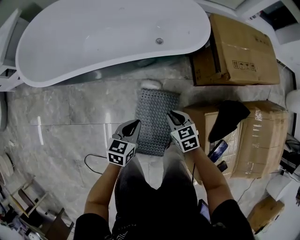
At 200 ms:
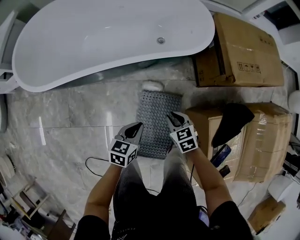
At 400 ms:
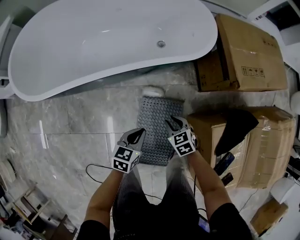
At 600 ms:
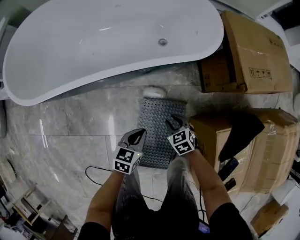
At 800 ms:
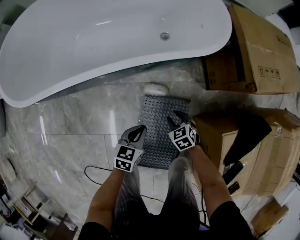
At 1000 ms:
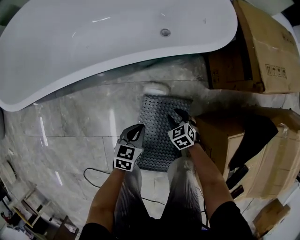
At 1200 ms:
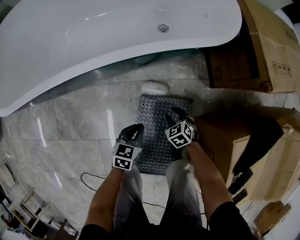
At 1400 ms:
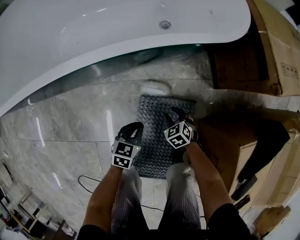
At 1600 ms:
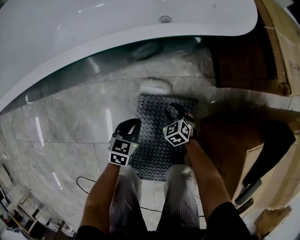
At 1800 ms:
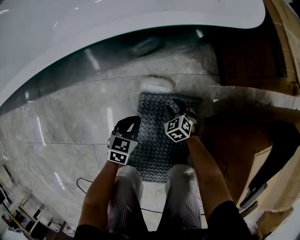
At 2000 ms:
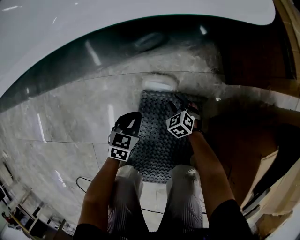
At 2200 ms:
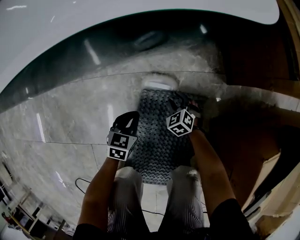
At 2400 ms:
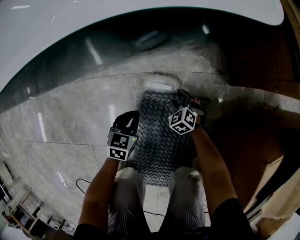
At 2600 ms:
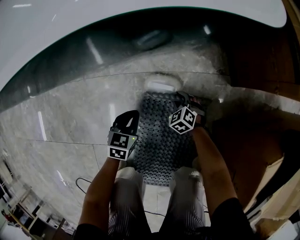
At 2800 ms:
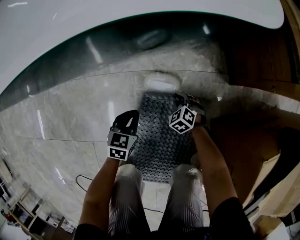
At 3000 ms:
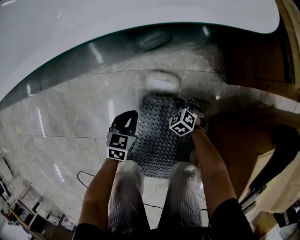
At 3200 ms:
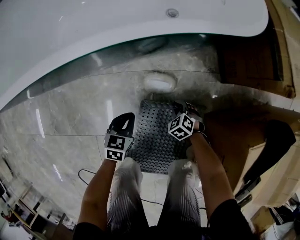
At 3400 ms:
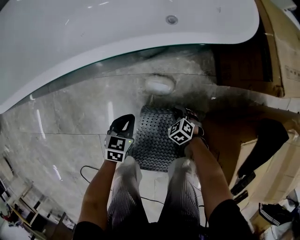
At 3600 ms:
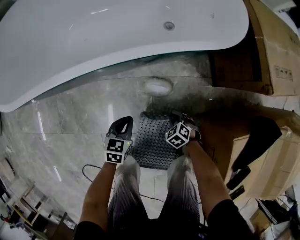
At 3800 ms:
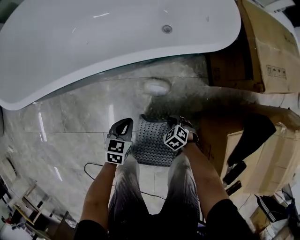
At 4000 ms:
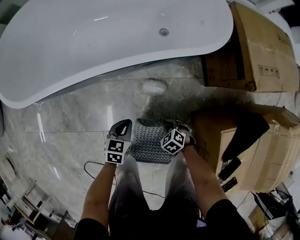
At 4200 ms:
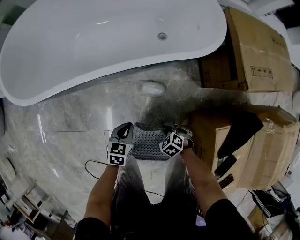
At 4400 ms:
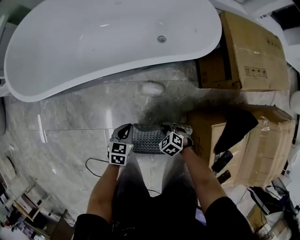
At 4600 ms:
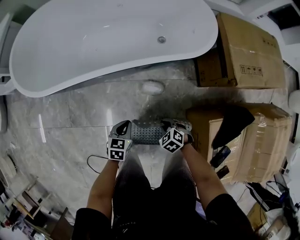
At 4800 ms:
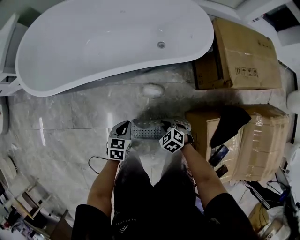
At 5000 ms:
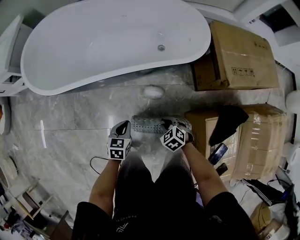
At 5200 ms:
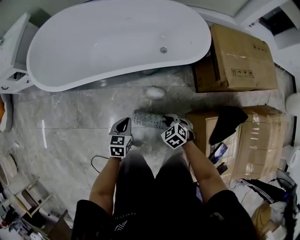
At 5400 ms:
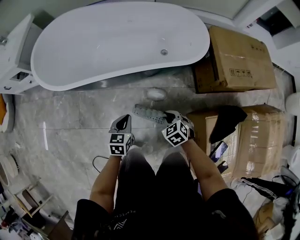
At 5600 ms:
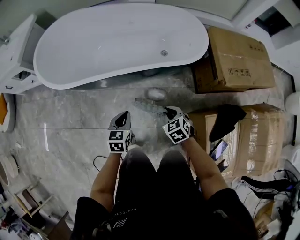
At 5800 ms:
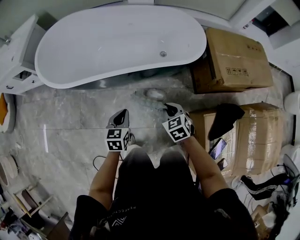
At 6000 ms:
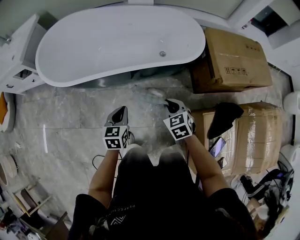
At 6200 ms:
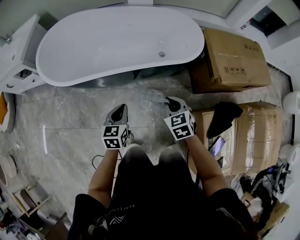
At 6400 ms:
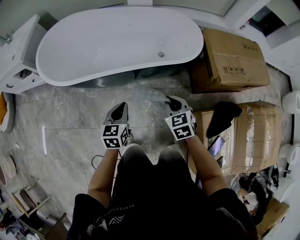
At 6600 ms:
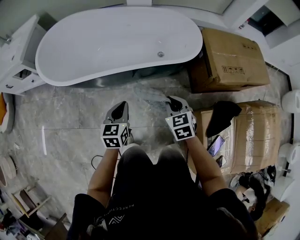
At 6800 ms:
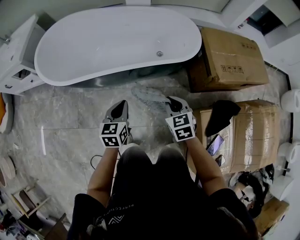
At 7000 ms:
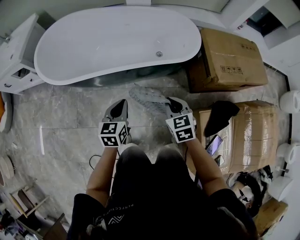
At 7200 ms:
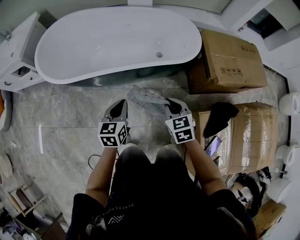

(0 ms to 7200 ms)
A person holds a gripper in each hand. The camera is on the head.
0 ms - 1400 ms: Both grippers move downward, some 35 cm.
1400 ms - 2800 ms: The two grippers go about 10 cm downward. The right gripper closes up.
2800 ms - 4400 ms: The right gripper is displaced upward and backward by approximately 35 cm. The left gripper is displaced upward by approximately 30 cm.
4400 ms - 5800 ms: The two grippers go some 25 cm upward. The right gripper swivels about 30 degrees.
5800 ms - 7200 ms: Both grippers move upward, some 10 cm.

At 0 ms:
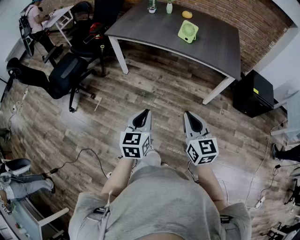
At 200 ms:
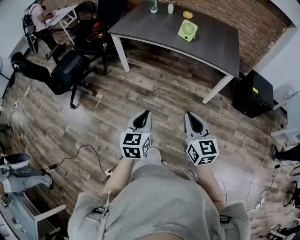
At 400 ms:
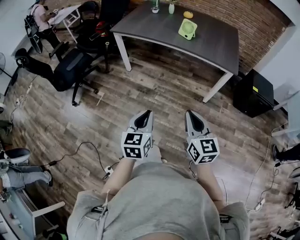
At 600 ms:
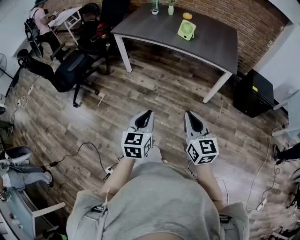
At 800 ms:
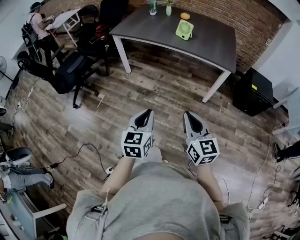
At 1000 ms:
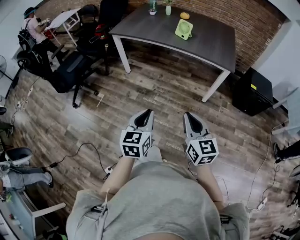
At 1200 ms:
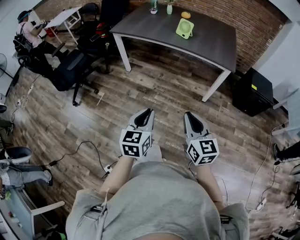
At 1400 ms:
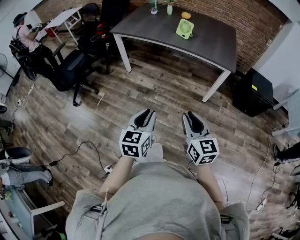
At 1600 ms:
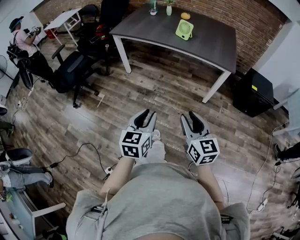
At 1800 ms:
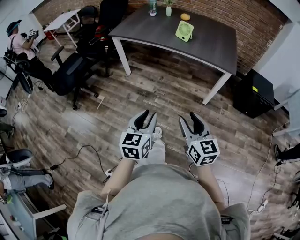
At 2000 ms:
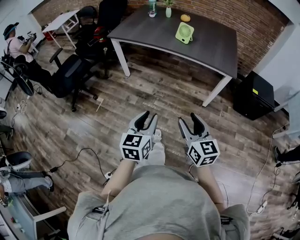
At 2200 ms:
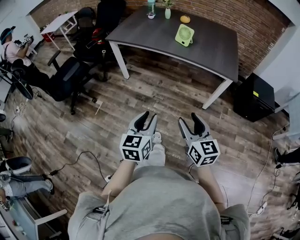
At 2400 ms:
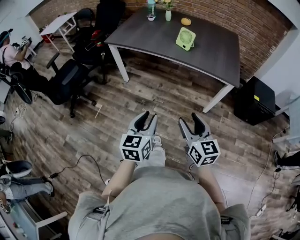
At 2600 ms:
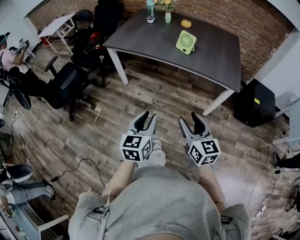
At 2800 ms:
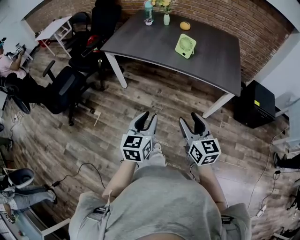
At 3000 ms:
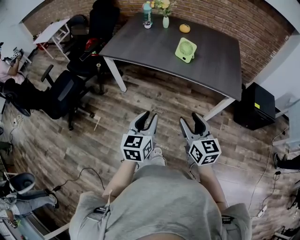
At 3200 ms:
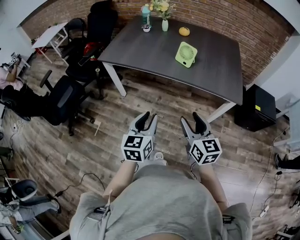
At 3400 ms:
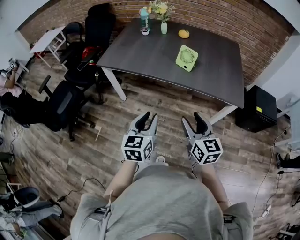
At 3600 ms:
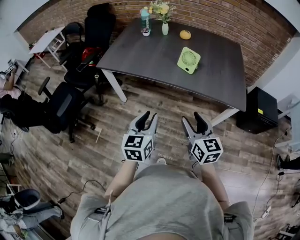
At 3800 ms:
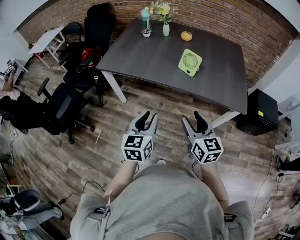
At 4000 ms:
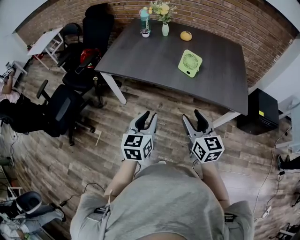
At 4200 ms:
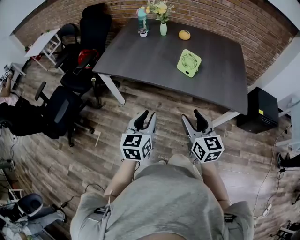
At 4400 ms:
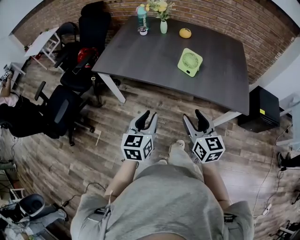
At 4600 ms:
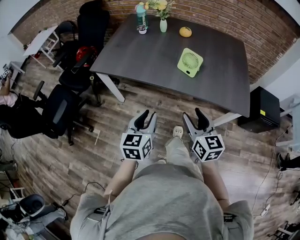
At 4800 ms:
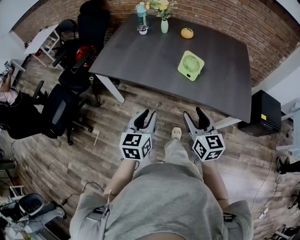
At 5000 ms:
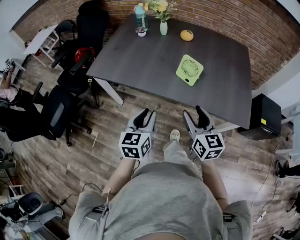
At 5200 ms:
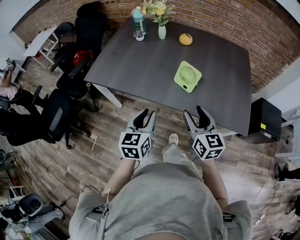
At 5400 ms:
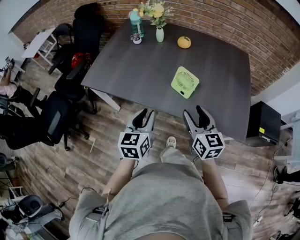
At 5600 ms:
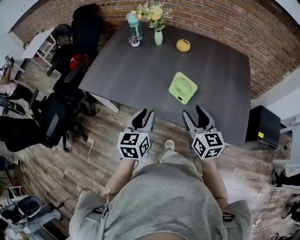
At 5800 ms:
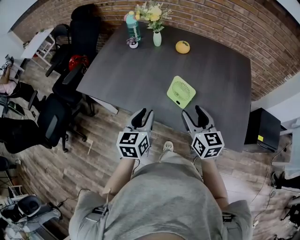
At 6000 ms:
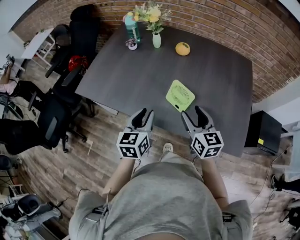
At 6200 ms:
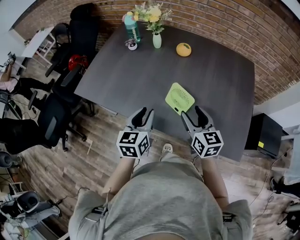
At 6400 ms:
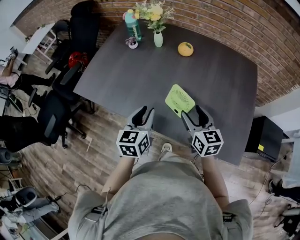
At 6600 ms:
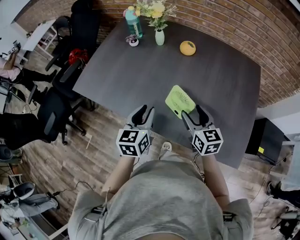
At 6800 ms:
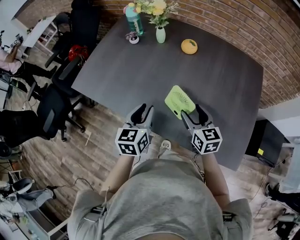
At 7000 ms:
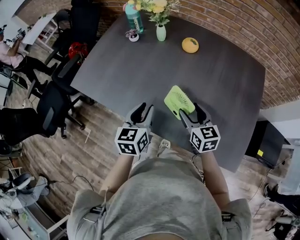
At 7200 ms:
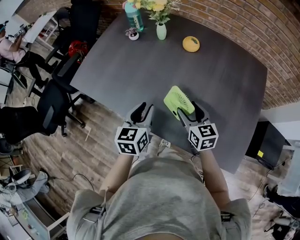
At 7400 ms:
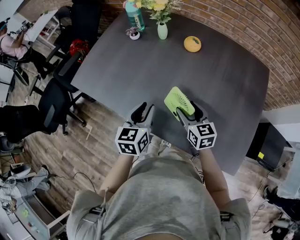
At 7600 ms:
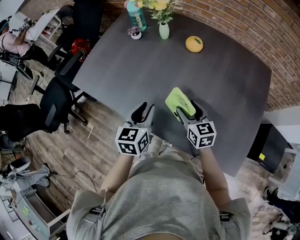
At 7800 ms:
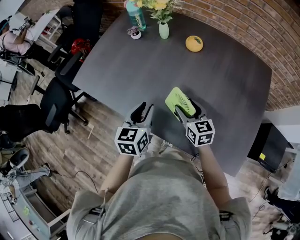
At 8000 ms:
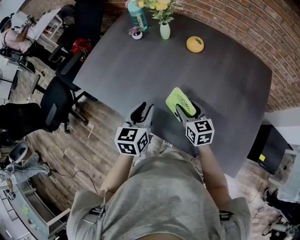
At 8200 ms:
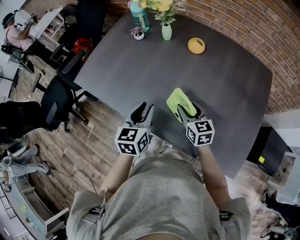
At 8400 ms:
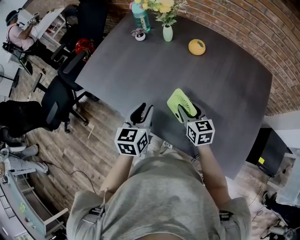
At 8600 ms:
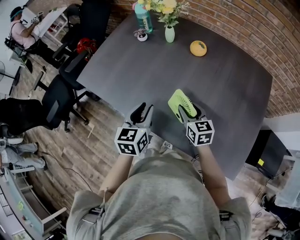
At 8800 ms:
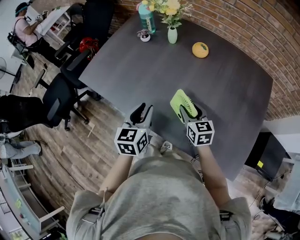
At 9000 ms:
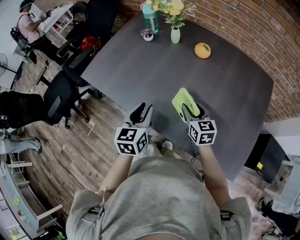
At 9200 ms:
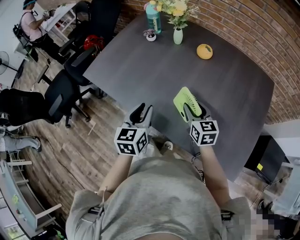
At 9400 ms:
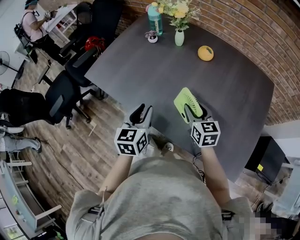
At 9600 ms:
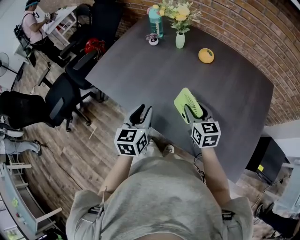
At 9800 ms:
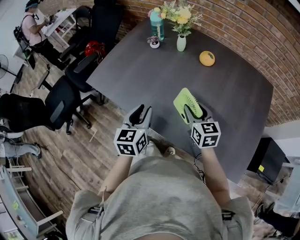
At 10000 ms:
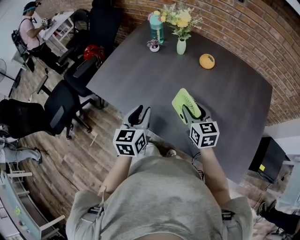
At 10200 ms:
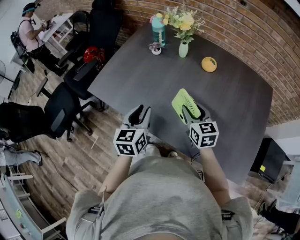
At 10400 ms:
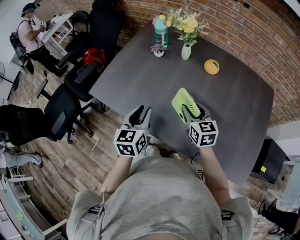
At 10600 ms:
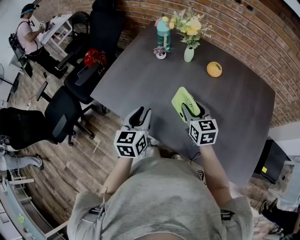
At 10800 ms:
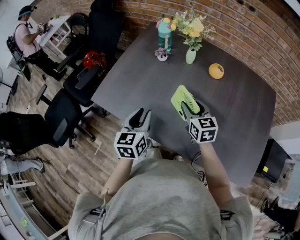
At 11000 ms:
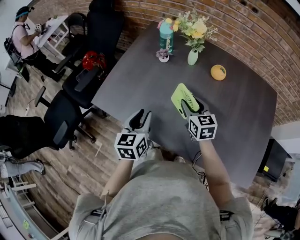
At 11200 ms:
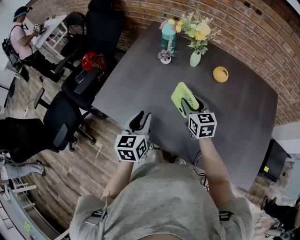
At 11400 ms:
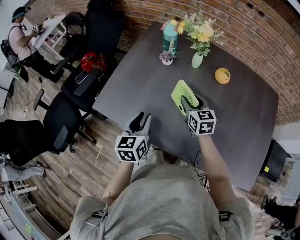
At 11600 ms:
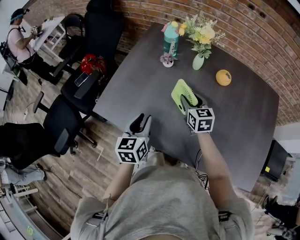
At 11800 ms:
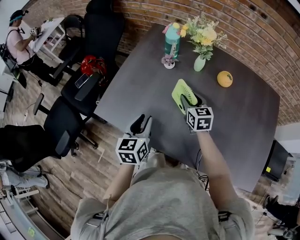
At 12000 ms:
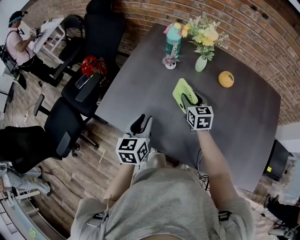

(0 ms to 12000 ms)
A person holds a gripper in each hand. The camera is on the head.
0 ms - 1600 ms: The left gripper moves backward and to the right, approximately 15 cm. The right gripper travels backward by roughly 10 cm, and opens up.
1600 ms - 3000 ms: Both grippers move forward, roughly 25 cm.
3000 ms - 4400 ms: Both grippers move forward, some 20 cm.
4400 ms - 6000 ms: The two grippers go some 25 cm forward.
6000 ms - 7600 ms: The left gripper travels forward by some 10 cm; the right gripper is displaced forward and downward by some 15 cm.
7600 ms - 9000 ms: The grippers stay close to where they were, moving slightly.
9000 ms - 10400 ms: The left gripper travels to the left and forward by approximately 10 cm. The right gripper travels to the left, forward and upward by roughly 15 cm.
10400 ms - 12000 ms: The grippers both shift forward and to the left by some 15 cm.

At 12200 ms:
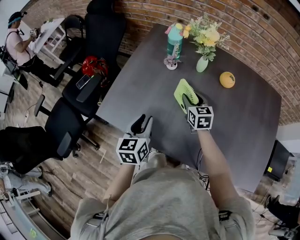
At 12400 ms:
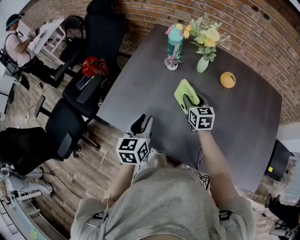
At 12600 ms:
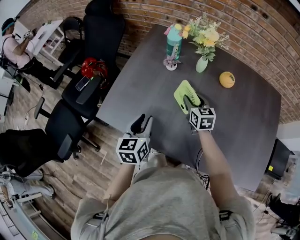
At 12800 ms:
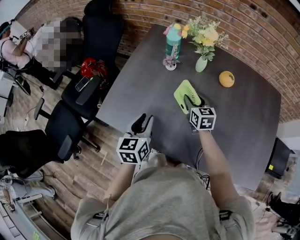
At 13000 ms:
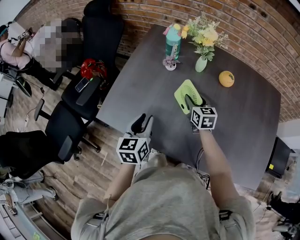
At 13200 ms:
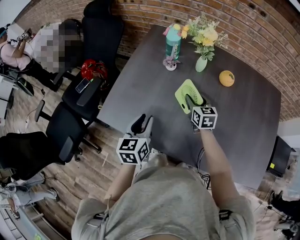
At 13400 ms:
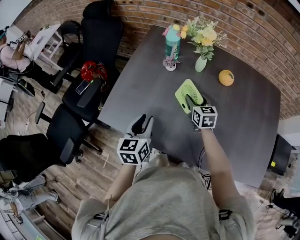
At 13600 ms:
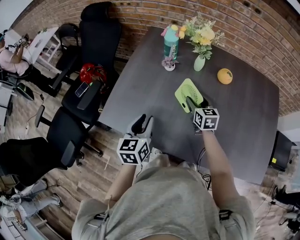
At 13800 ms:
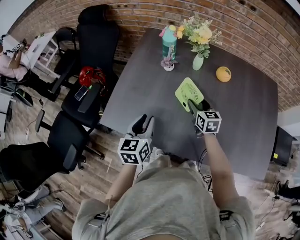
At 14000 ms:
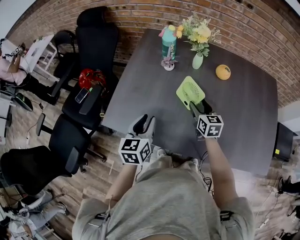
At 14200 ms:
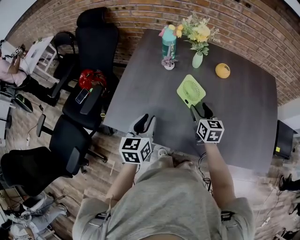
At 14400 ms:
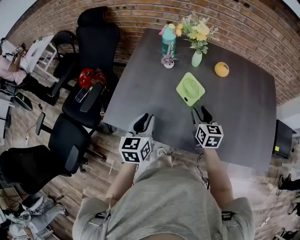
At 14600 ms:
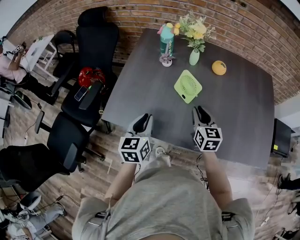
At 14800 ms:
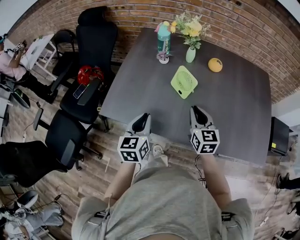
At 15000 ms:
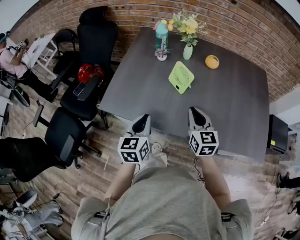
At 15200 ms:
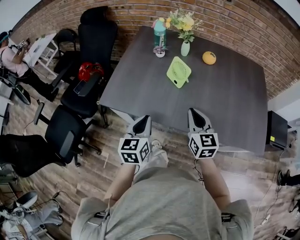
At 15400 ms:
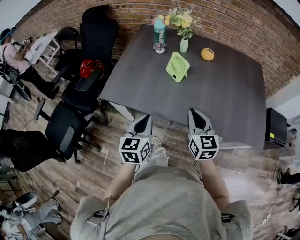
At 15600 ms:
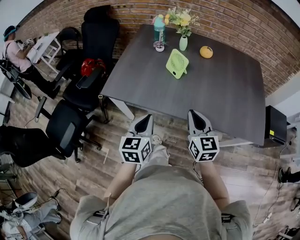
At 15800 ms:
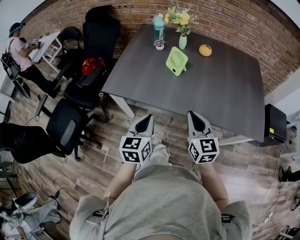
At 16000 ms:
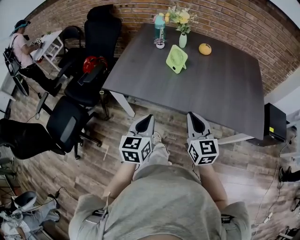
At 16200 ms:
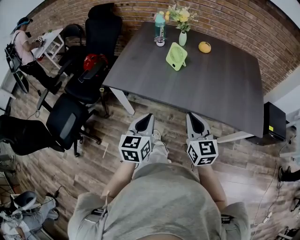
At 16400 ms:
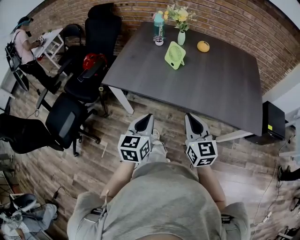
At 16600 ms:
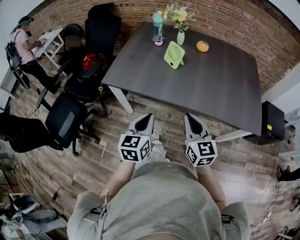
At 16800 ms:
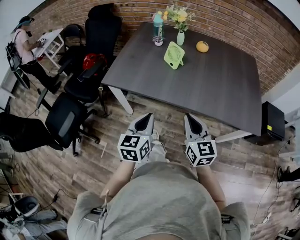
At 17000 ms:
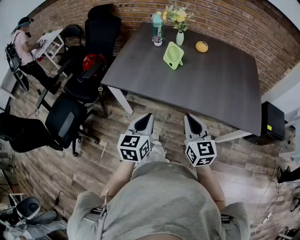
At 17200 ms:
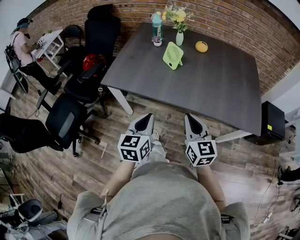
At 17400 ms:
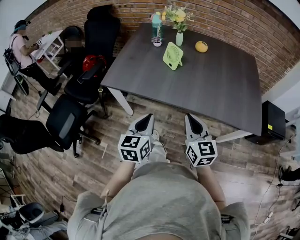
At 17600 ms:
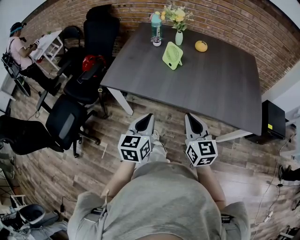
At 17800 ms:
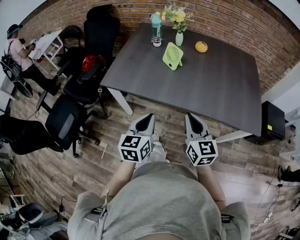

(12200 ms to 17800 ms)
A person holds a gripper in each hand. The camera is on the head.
12200 ms - 13600 ms: The grippers make only small movements.
13600 ms - 15000 ms: The left gripper moves backward, some 10 cm. The right gripper is displaced backward and upward by approximately 25 cm, and closes its fingers.
15000 ms - 16400 ms: Both grippers travel together backward, approximately 25 cm.
16400 ms - 17800 ms: There are only small adjustments of the grippers.
